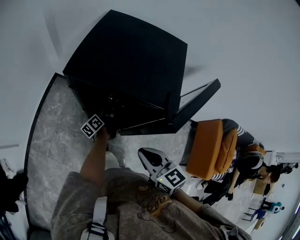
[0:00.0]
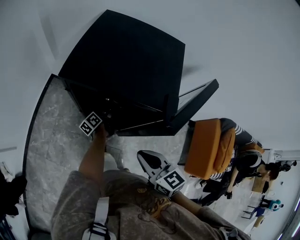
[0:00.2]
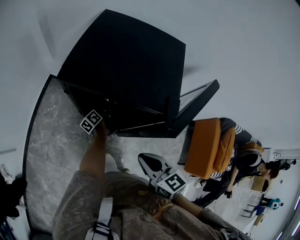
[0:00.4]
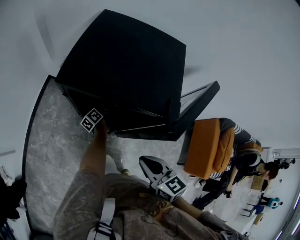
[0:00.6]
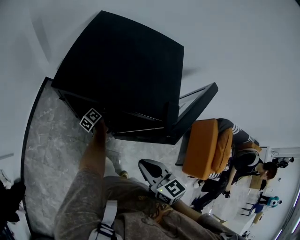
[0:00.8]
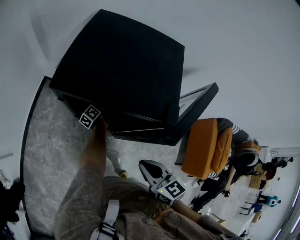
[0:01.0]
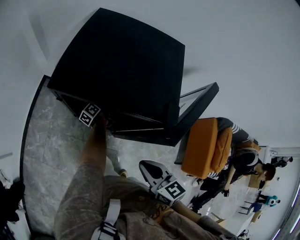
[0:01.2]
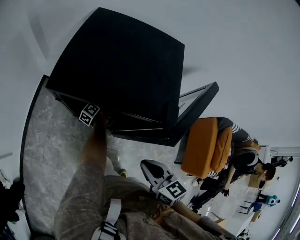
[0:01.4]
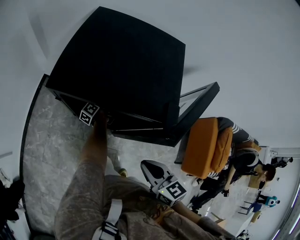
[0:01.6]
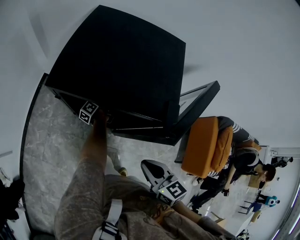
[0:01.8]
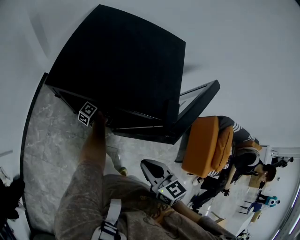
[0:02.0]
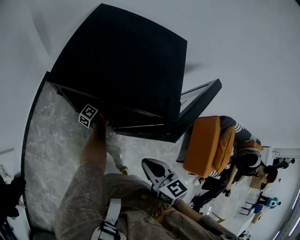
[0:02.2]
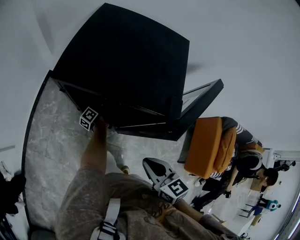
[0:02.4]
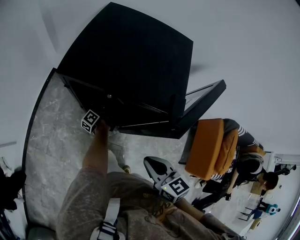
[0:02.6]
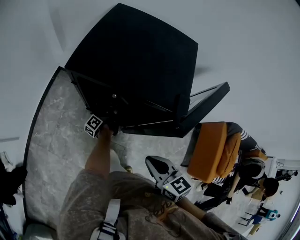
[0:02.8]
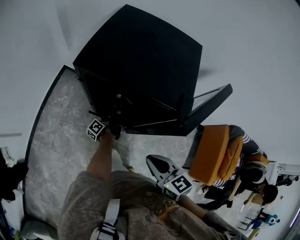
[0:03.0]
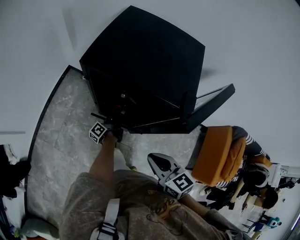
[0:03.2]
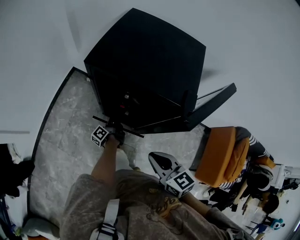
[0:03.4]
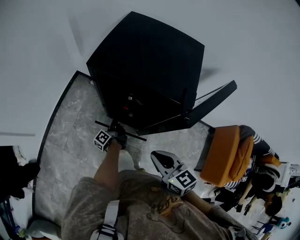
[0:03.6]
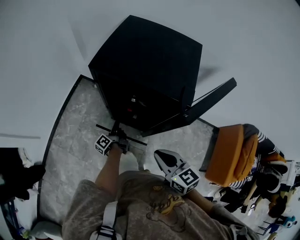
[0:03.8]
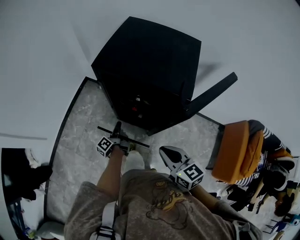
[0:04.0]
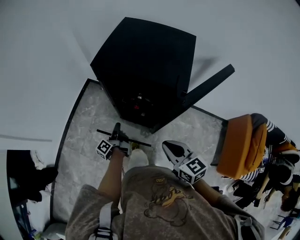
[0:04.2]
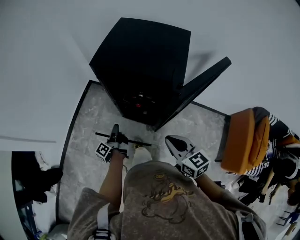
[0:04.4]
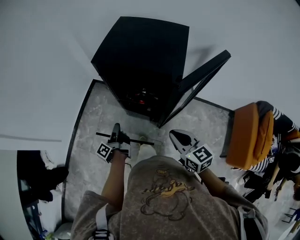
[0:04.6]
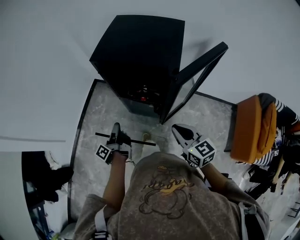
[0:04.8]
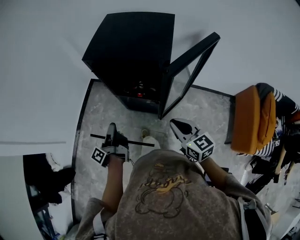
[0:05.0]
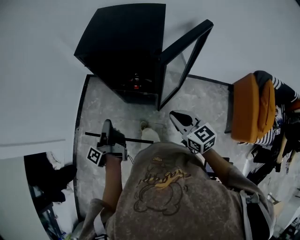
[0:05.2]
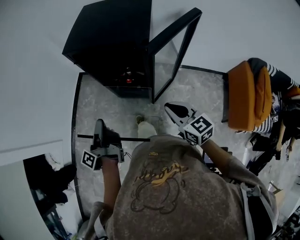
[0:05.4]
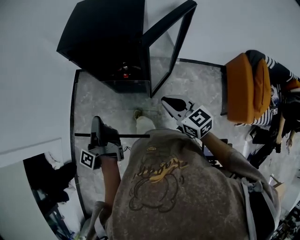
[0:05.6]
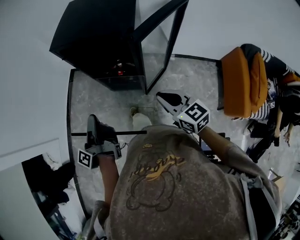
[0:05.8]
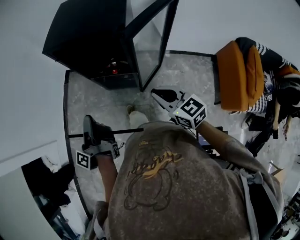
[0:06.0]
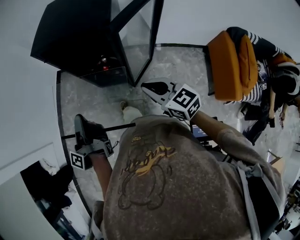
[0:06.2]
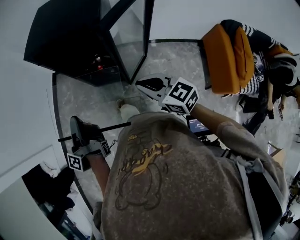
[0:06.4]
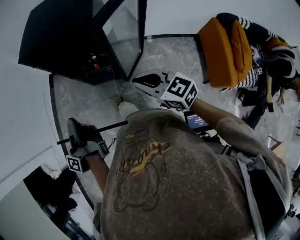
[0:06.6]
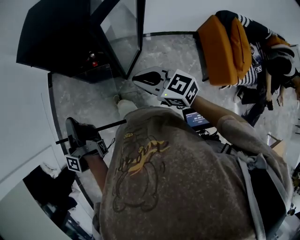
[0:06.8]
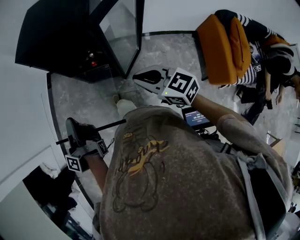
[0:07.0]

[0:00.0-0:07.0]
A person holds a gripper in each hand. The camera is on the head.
0:00.0 to 0:01.4: The left gripper heads forward and downward, covering roughly 15 cm.
0:01.4 to 0:02.8: The left gripper moves backward, roughly 10 cm.
0:02.8 to 0:04.2: The left gripper moves backward, to the left and upward, some 20 cm.
0:04.2 to 0:05.6: The left gripper is displaced upward and backward by roughly 25 cm, while the right gripper goes approximately 10 cm backward and to the right.
0:05.6 to 0:07.0: The grippers make only small movements.

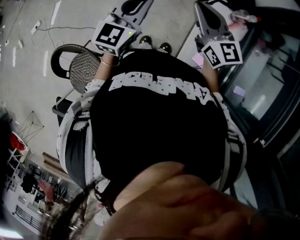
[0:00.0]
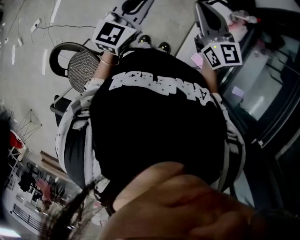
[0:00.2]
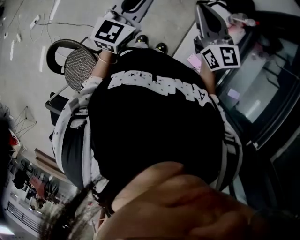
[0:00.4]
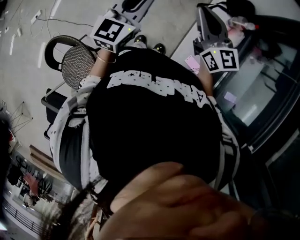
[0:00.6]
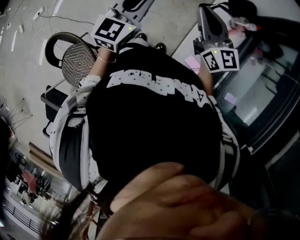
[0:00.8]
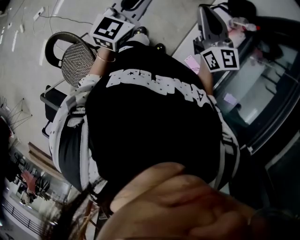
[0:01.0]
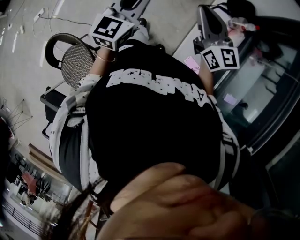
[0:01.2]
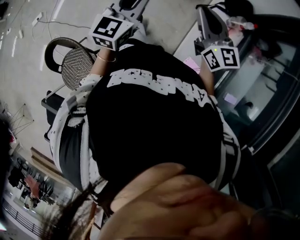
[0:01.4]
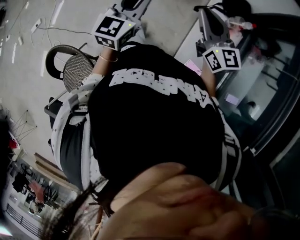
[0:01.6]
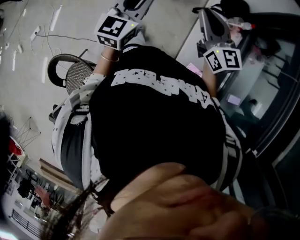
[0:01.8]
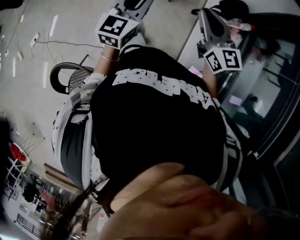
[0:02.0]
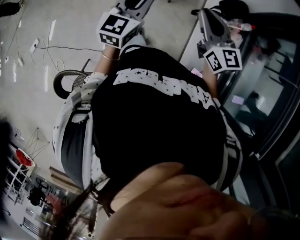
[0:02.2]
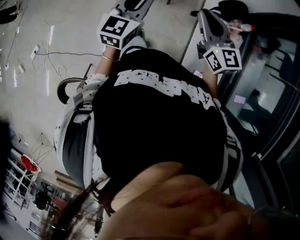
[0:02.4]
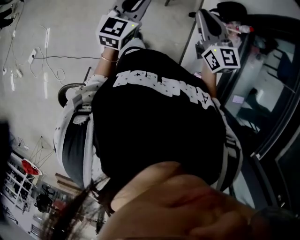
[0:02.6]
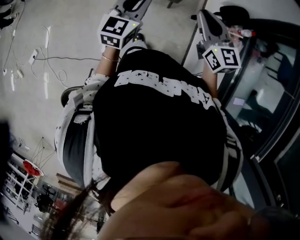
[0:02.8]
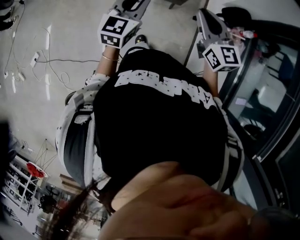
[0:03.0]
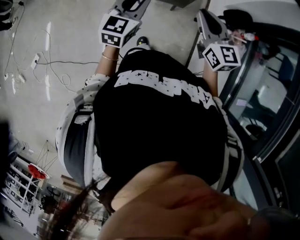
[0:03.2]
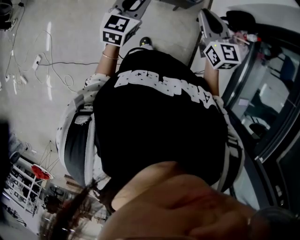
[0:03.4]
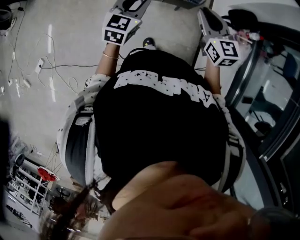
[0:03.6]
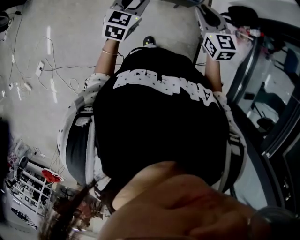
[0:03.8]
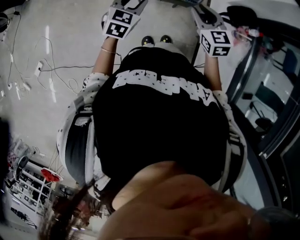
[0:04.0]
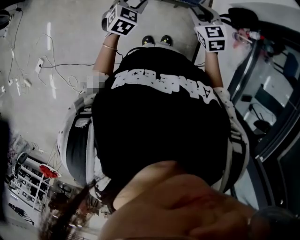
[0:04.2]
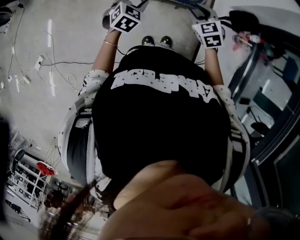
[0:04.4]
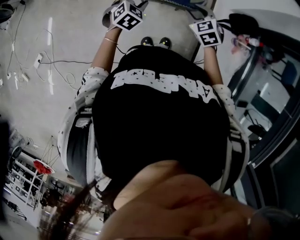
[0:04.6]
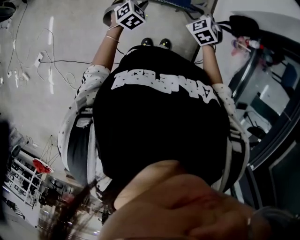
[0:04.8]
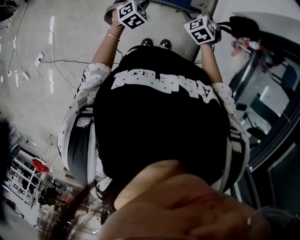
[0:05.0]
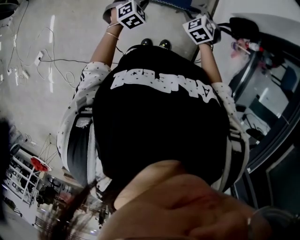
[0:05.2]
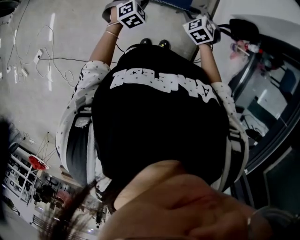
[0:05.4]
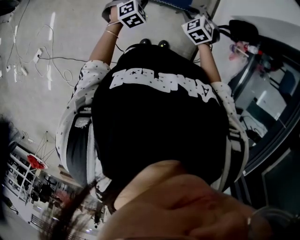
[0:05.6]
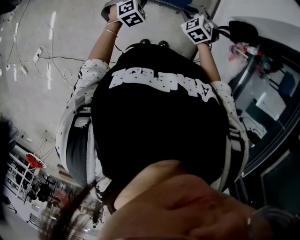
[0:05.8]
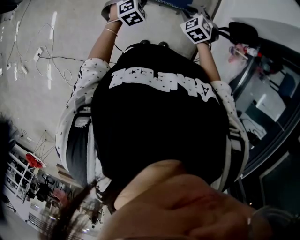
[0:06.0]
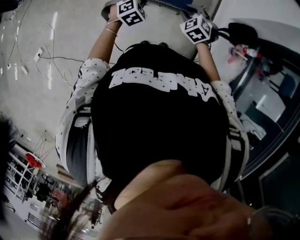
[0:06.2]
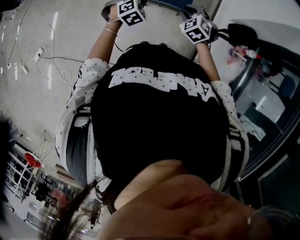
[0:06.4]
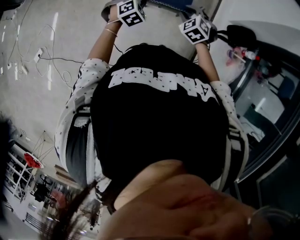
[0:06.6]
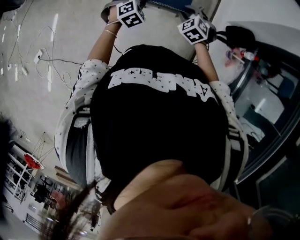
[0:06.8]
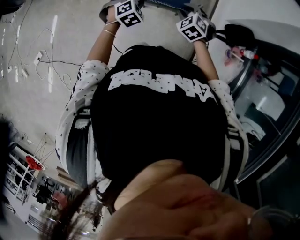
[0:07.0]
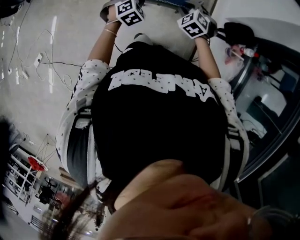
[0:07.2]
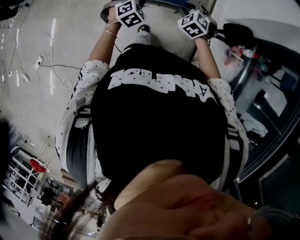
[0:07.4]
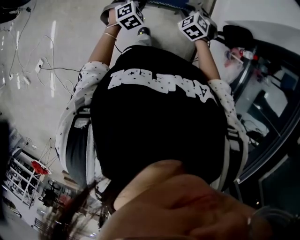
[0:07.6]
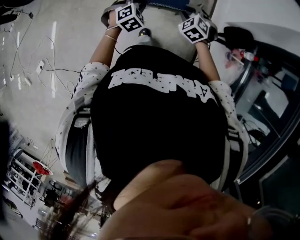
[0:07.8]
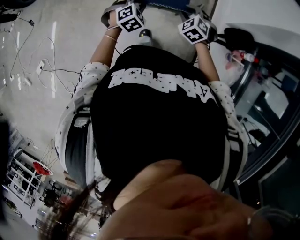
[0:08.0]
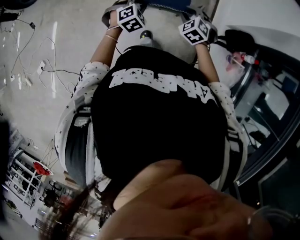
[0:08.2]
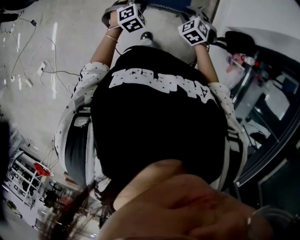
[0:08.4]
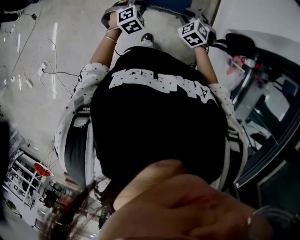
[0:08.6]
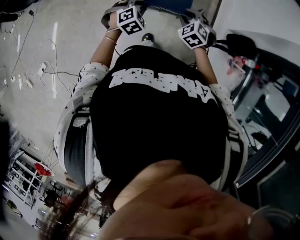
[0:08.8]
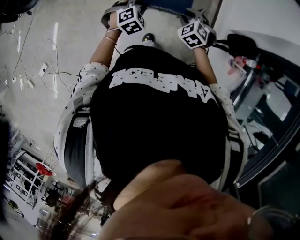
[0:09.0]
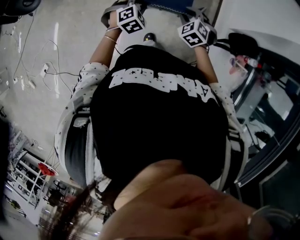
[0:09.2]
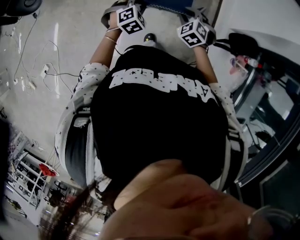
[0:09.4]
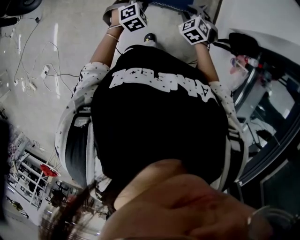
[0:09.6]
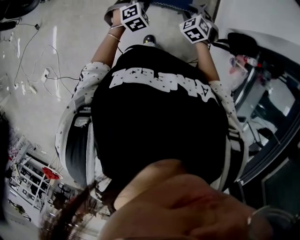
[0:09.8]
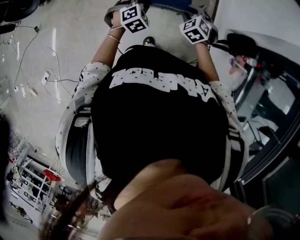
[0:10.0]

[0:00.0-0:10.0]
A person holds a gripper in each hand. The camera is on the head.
0:00.0 to 0:01.4: The right gripper heads to the right, covering some 5 cm.
0:01.4 to 0:02.8: The grippers both shift forward by some 20 cm.
0:02.8 to 0:04.2: The two grippers go about 20 cm downward, forward and to the left. The left gripper swivels some 30 degrees, and opens its fingers, while the right gripper changes its angle by about 30 degrees, and opens its fingers.
0:04.2 to 0:05.8: The two grippers go approximately 5 cm downward. The left gripper rotates some 30 degrees; the right gripper swivels about 30 degrees.
0:05.8 to 0:07.2: The right gripper travels forward by about 5 cm. Meanwhile the left gripper changes place by roughly 5 cm.
0:07.2 to 0:08.6: The grippers make only small movements.
0:08.6 to 0:10.0: The two grippers go some 5 cm forward.

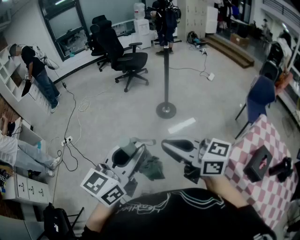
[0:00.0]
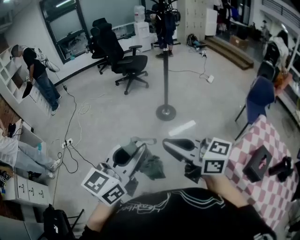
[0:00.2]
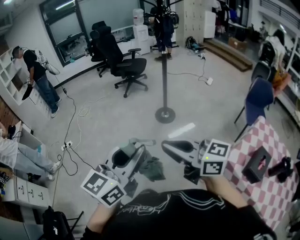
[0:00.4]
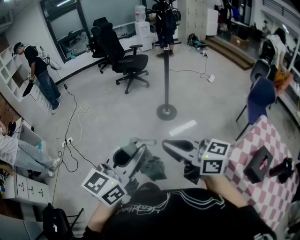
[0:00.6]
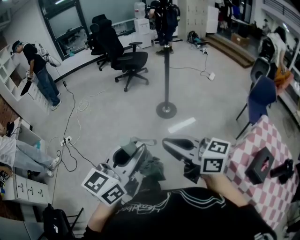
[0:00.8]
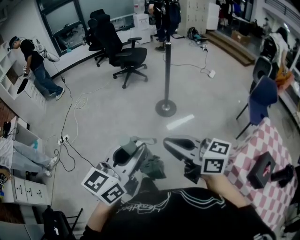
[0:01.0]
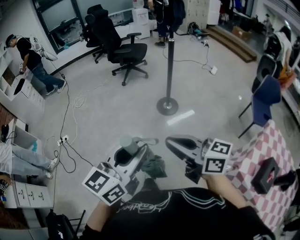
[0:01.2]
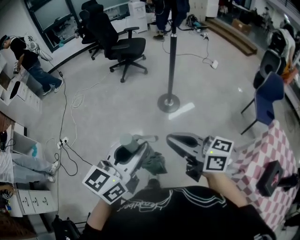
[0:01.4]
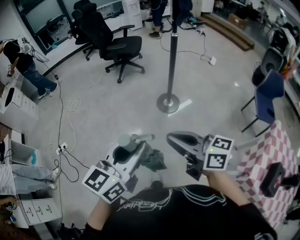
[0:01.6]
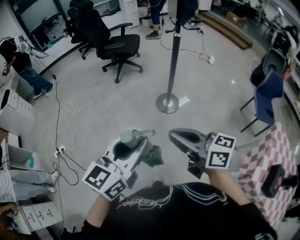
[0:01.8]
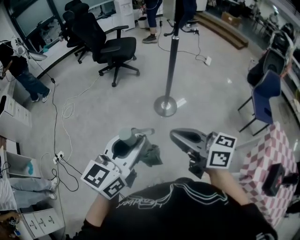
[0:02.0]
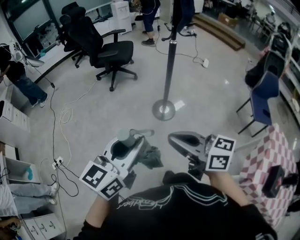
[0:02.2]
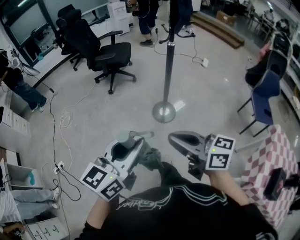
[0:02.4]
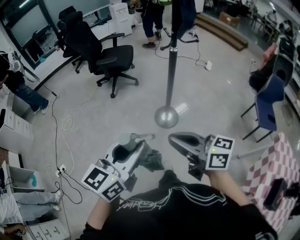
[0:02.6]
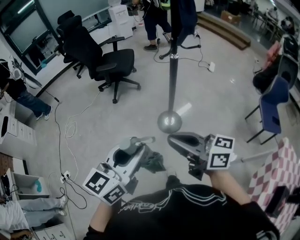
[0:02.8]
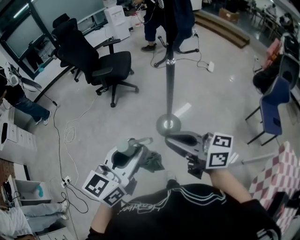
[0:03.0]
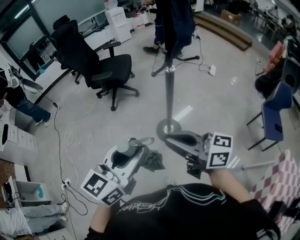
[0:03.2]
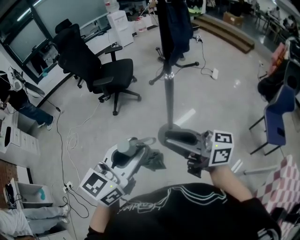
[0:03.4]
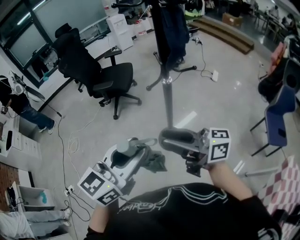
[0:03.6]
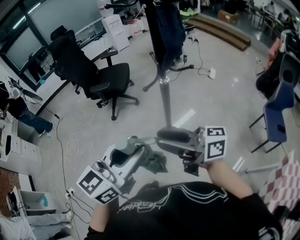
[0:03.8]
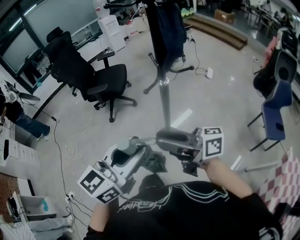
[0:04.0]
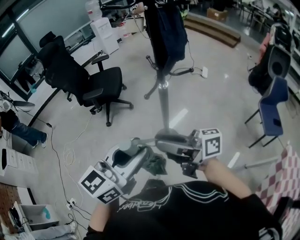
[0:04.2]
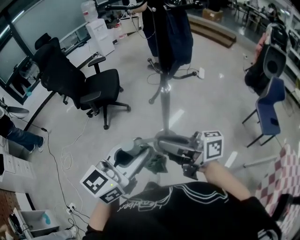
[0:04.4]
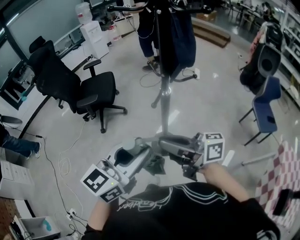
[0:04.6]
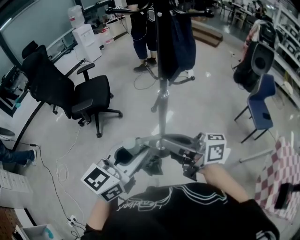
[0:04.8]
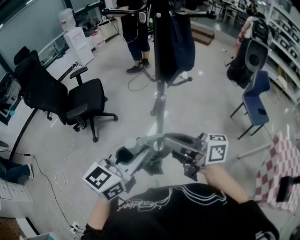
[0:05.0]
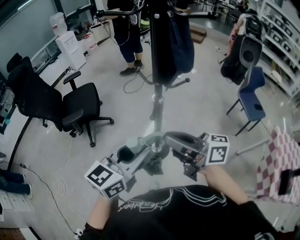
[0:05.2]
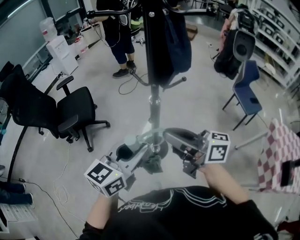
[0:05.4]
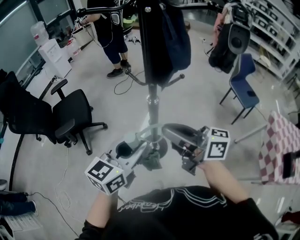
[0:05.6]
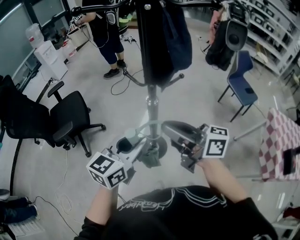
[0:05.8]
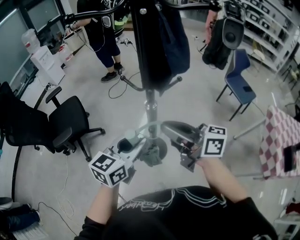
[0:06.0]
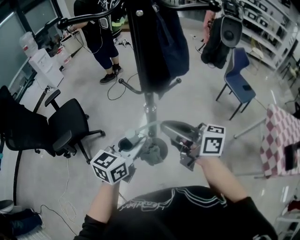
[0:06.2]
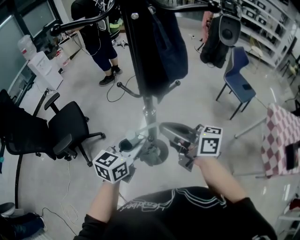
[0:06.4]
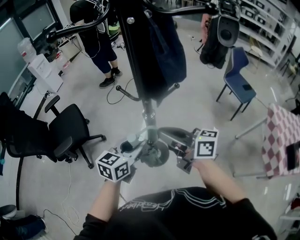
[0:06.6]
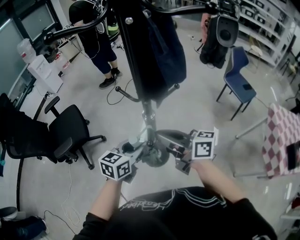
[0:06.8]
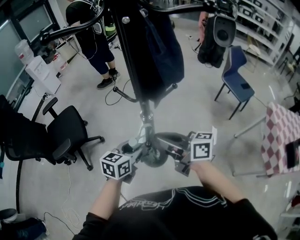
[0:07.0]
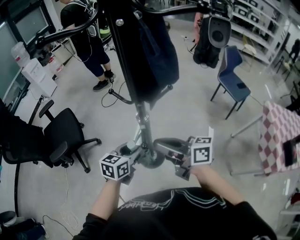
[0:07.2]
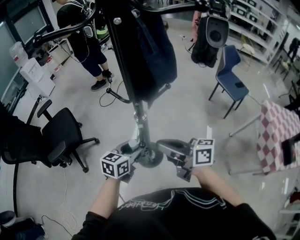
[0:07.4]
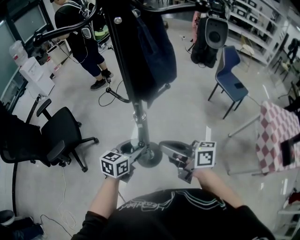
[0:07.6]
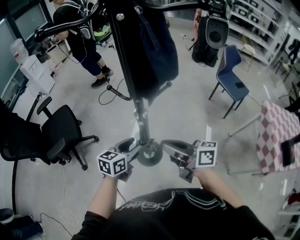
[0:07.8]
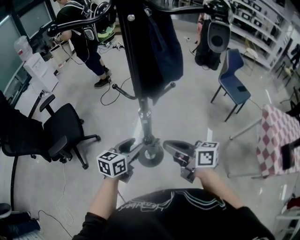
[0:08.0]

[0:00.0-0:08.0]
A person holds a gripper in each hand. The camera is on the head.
0:00.0 to 0:01.6: The grippers both shift forward by approximately 30 cm.
0:01.6 to 0:03.2: The two grippers go approximately 35 cm forward.
0:03.2 to 0:04.8: Both grippers move forward, some 15 cm. The right gripper opens, then closes again, while the left gripper rotates approximately 20 degrees.
0:04.8 to 0:06.4: The left gripper heads forward and downward, covering about 20 cm, and changes its angle by some 20 degrees. Meanwhile the right gripper is displaced forward by some 15 cm, and changes its angle by roughly 30 degrees.
0:06.4 to 0:08.0: Both grippers travel together downward, some 10 cm.
